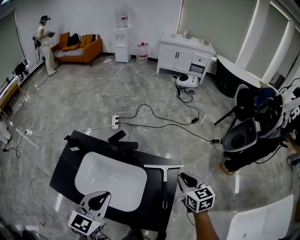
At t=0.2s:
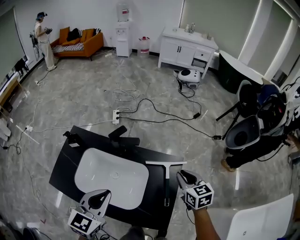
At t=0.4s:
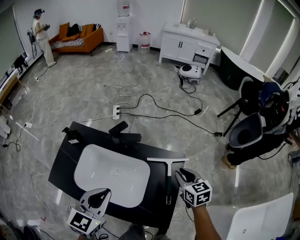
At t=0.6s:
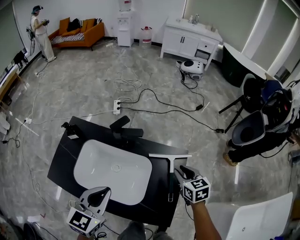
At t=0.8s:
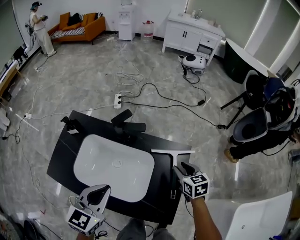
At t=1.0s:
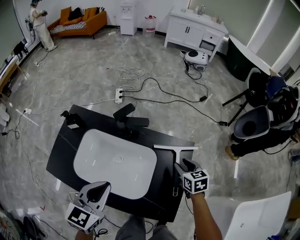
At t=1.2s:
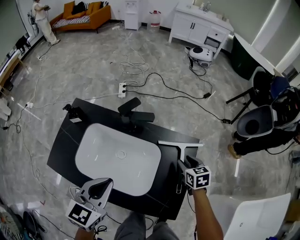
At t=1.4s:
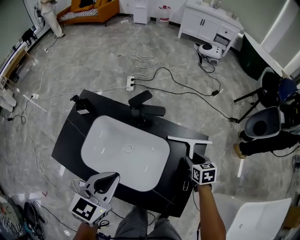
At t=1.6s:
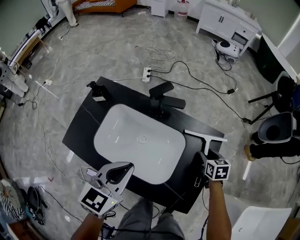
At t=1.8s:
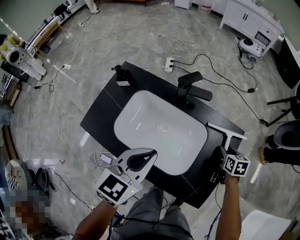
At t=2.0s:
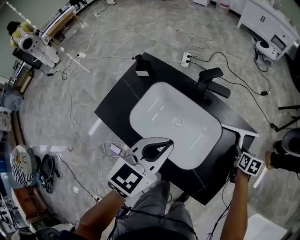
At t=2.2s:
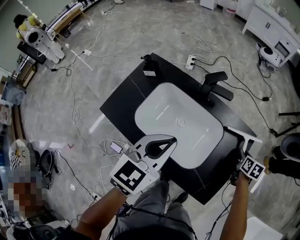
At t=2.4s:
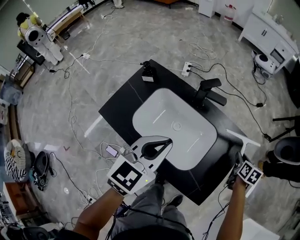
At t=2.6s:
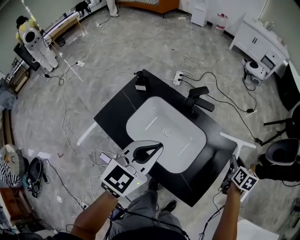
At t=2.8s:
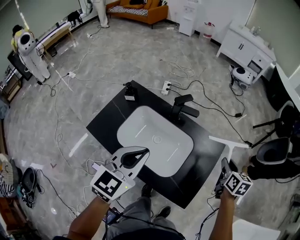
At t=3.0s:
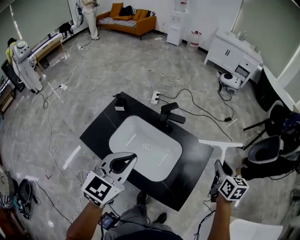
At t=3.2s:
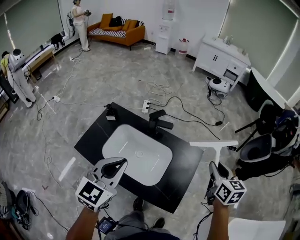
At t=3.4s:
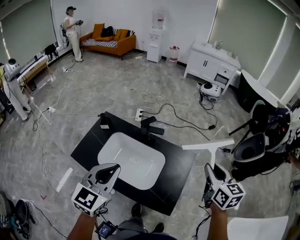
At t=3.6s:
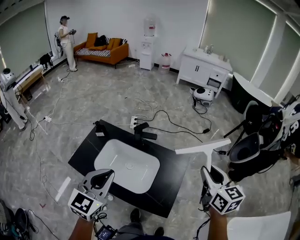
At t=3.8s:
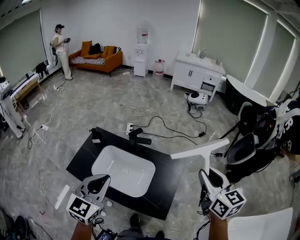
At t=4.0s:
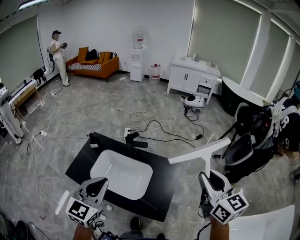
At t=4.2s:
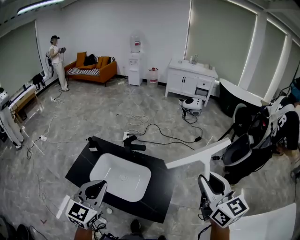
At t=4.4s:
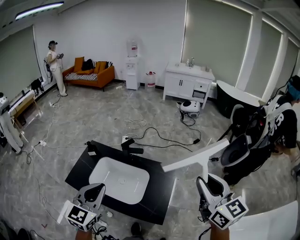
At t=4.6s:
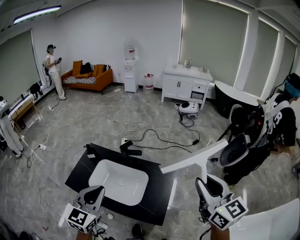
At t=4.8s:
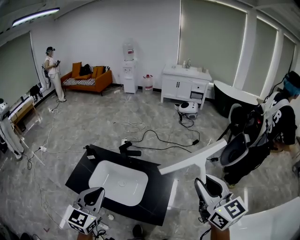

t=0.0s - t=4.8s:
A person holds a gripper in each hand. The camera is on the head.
t=0.0s - t=1.6s: The right gripper moves downward, about 20 cm, rotates roughly 20 degrees, and opens up. The left gripper is displaced downward and to the left by about 10 cm.
t=1.6s - t=3.2s: The right gripper travels upward by approximately 35 cm, changes its angle by roughly 30 degrees, and closes its fingers, while the left gripper shifts approximately 20 cm upward.
t=3.2s - t=4.8s: The left gripper shifts some 10 cm backward, upward and to the right, while the right gripper is displaced upward and backward by approximately 25 cm, and changes its angle by roughly 30 degrees.

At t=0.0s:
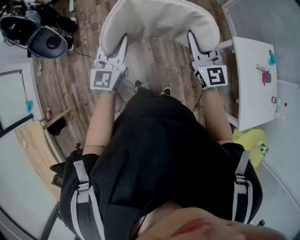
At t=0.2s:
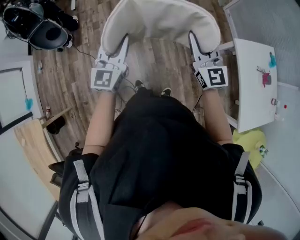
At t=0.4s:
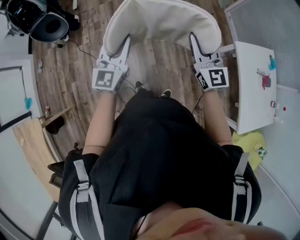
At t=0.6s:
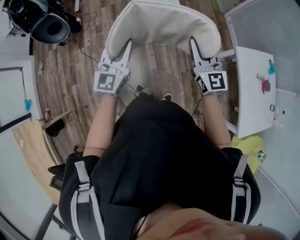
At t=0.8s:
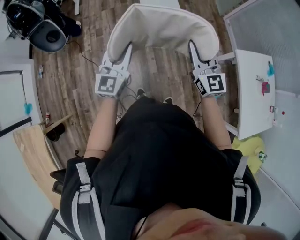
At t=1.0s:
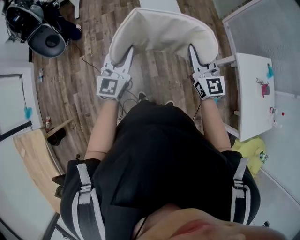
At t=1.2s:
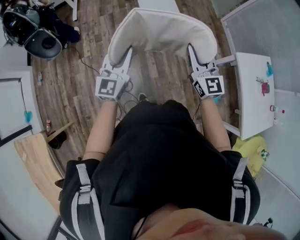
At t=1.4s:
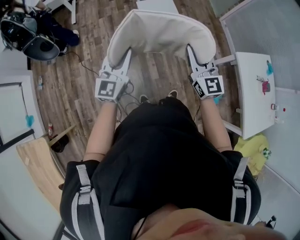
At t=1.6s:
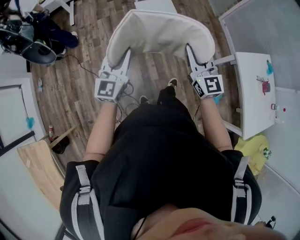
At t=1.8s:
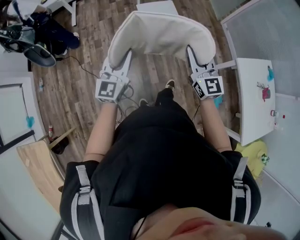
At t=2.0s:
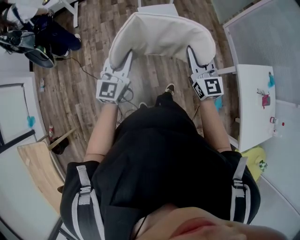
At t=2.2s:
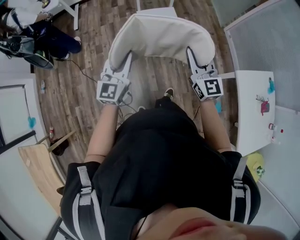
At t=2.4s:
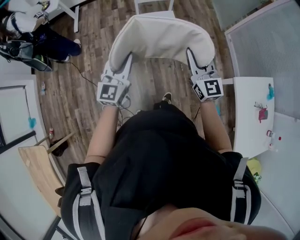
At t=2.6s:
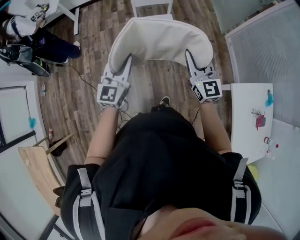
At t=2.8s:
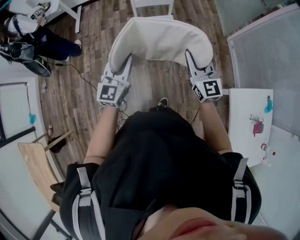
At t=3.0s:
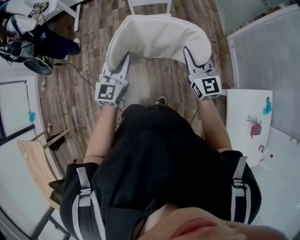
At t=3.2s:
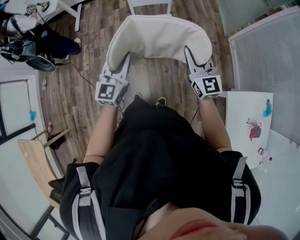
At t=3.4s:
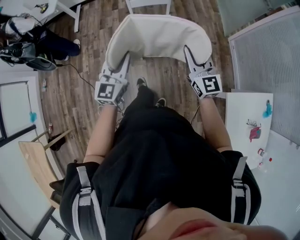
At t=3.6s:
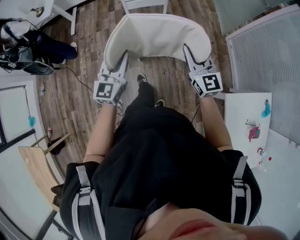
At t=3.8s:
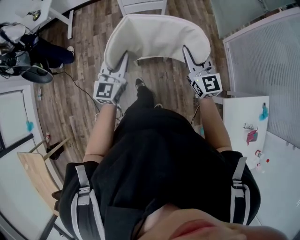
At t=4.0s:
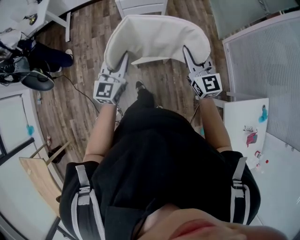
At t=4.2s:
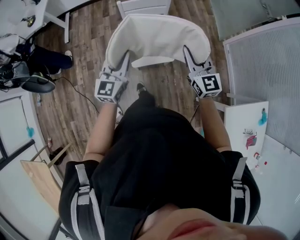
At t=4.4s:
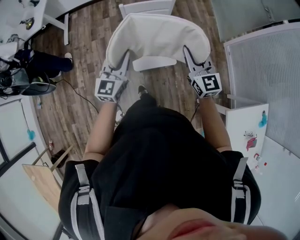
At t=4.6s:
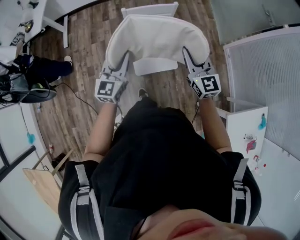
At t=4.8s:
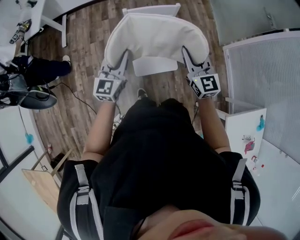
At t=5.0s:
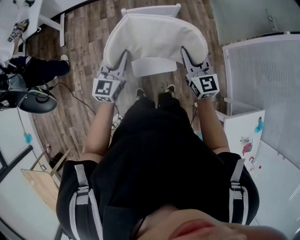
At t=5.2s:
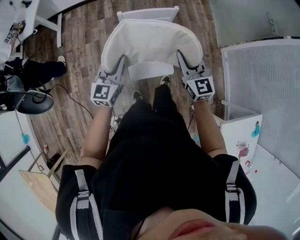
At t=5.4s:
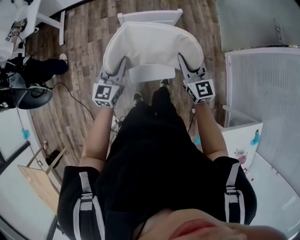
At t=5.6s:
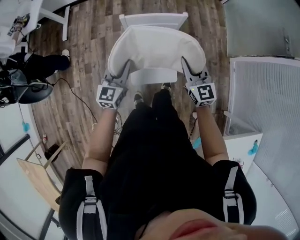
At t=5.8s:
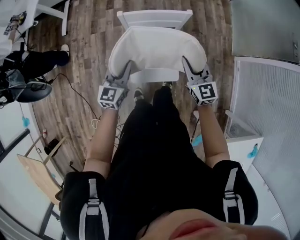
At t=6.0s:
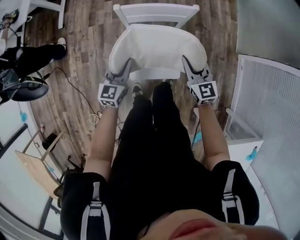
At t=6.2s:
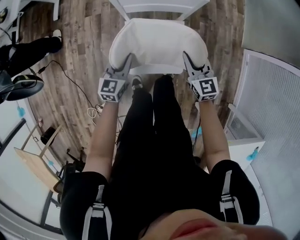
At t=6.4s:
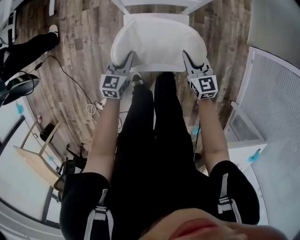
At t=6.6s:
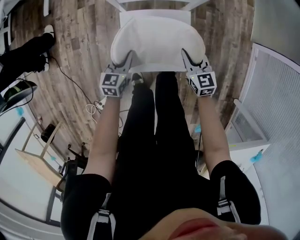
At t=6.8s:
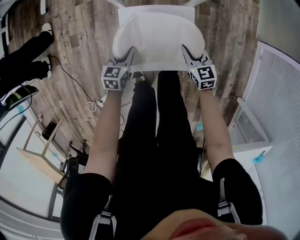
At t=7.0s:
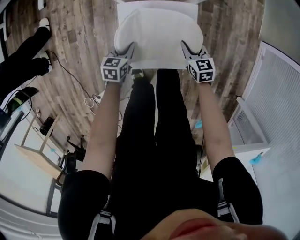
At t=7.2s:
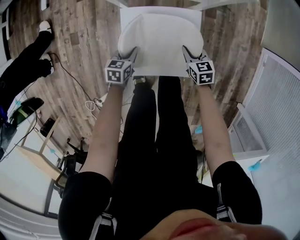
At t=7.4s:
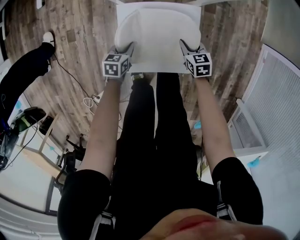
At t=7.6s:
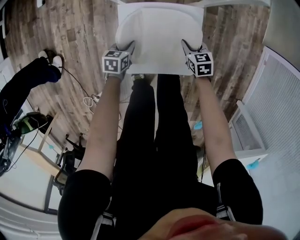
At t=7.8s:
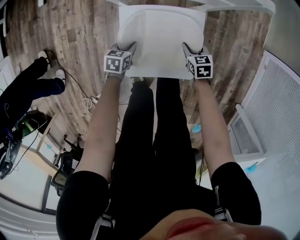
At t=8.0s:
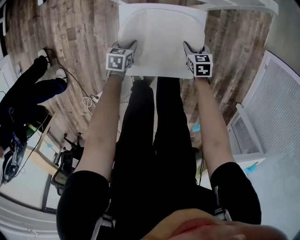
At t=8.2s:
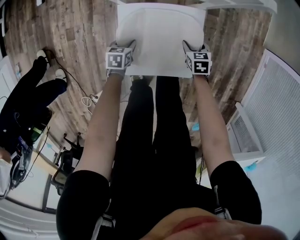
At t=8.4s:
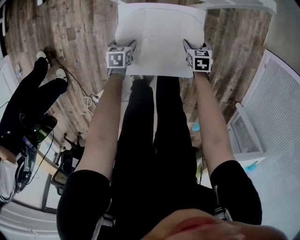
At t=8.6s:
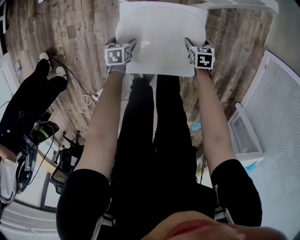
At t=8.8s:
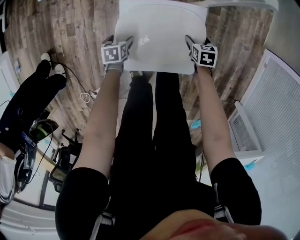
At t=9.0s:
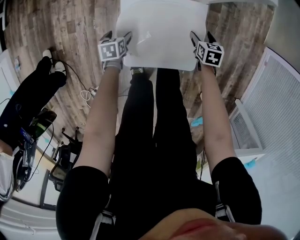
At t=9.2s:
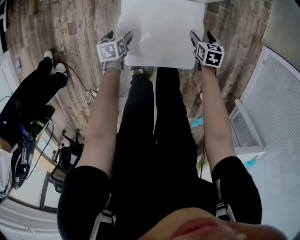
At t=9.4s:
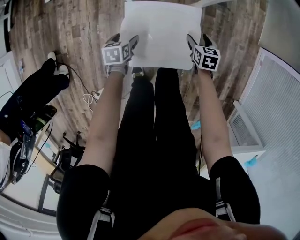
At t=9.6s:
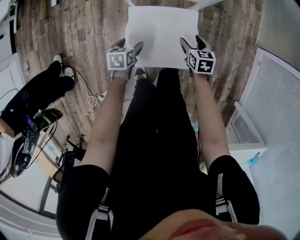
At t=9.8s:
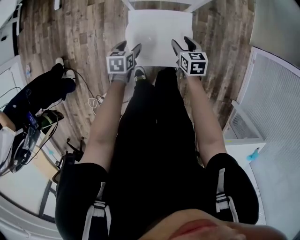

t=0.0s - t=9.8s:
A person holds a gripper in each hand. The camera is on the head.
t=0.0s - t=1.4s: Both grippers move to the left, approximately 10 cm.
t=1.4s - t=2.8s: The grippers both shift forward and to the right by approximately 30 cm.
t=2.8s - t=4.2s: Both grippers travel together forward, approximately 20 cm.
t=4.2s - t=5.6s: The grippers both shift forward and downward by roughly 25 cm.
t=5.6s - t=7.0s: Both grippers travel together downward, approximately 50 cm. The right gripper changes its angle by roughly 30 degrees. Meanwhile the left gripper angles its fingers downward, by about 30 degrees.
t=7.0s - t=8.4s: The two grippers go about 10 cm downward. The left gripper opens its fingers, while the right gripper changes its angle by some 20 degrees, and opens up.
t=8.4s - t=9.8s: The two grippers go approximately 25 cm upward.

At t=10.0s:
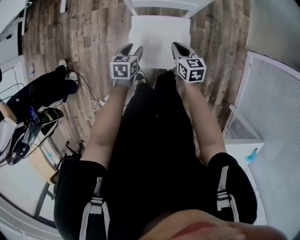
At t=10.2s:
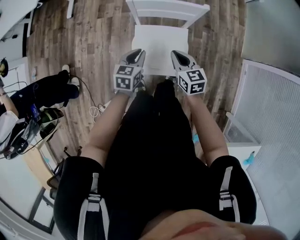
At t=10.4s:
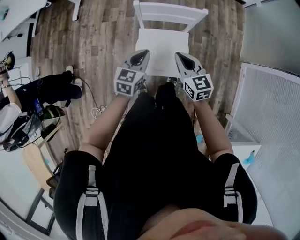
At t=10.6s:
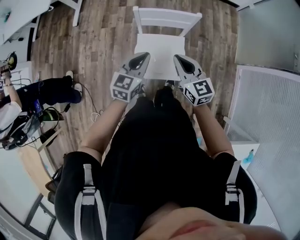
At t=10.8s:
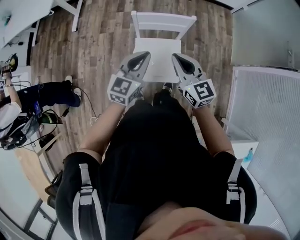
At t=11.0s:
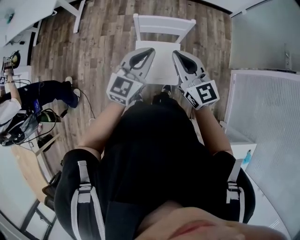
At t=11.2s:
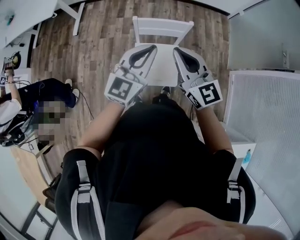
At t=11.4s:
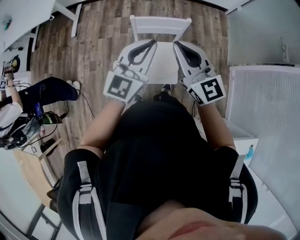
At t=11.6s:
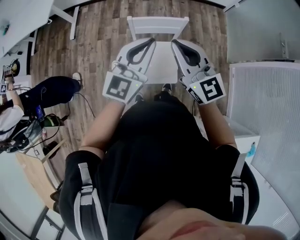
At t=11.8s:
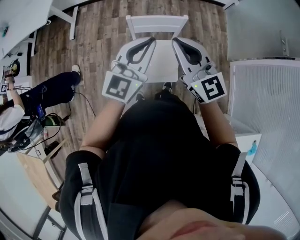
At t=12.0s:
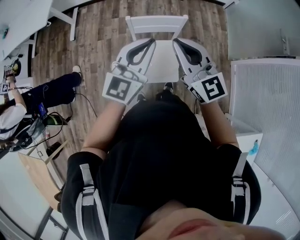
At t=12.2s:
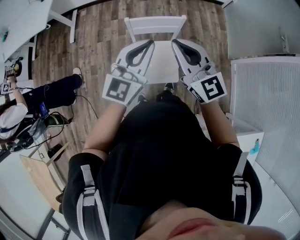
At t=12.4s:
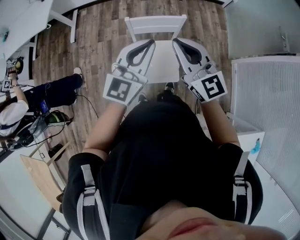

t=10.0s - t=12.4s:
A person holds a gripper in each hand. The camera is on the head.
t=10.0s - t=11.2s: Both grippers travel together upward, roughly 40 cm. The right gripper tilts its fingers roughly 40 degrees upward, while the left gripper tips its fingers upward by approximately 50 degrees, and closes up.
t=11.2s - t=12.4s: There are only small adjustments of the grippers.

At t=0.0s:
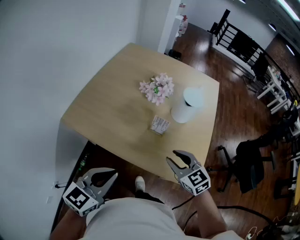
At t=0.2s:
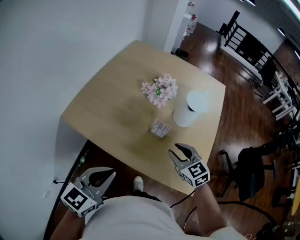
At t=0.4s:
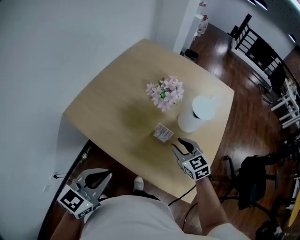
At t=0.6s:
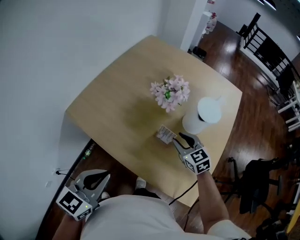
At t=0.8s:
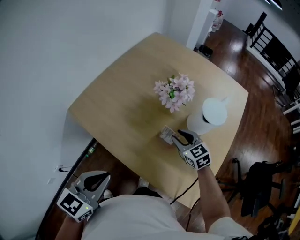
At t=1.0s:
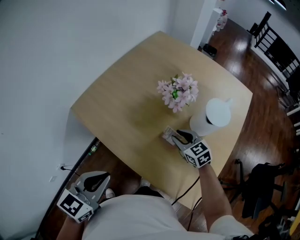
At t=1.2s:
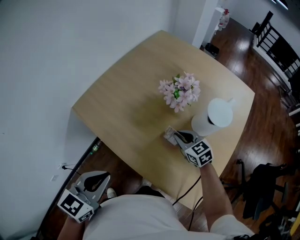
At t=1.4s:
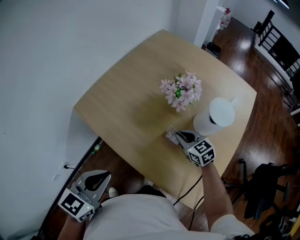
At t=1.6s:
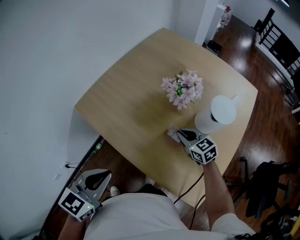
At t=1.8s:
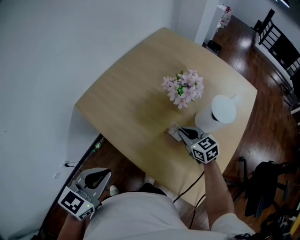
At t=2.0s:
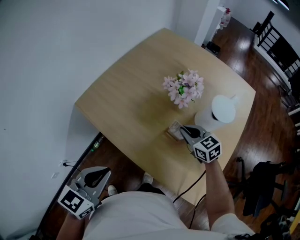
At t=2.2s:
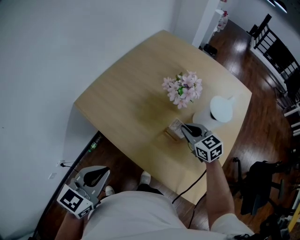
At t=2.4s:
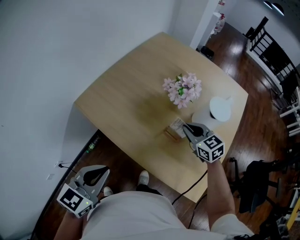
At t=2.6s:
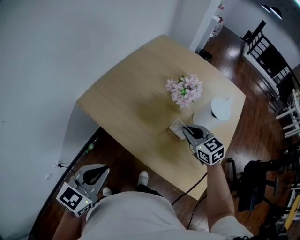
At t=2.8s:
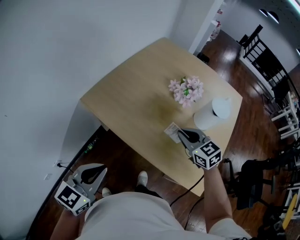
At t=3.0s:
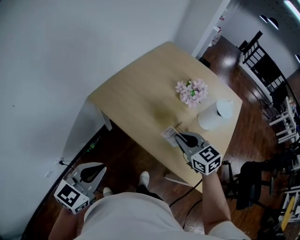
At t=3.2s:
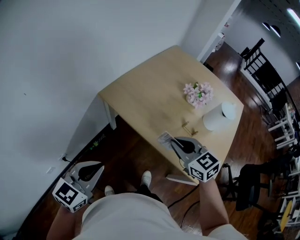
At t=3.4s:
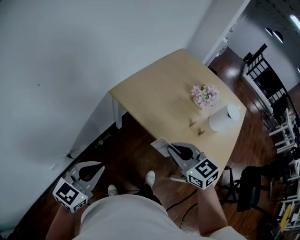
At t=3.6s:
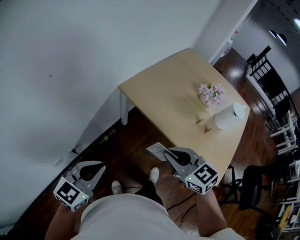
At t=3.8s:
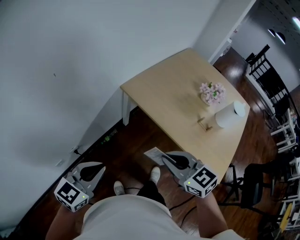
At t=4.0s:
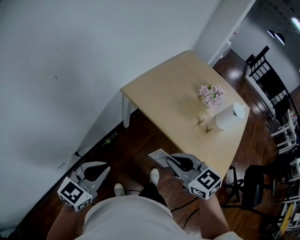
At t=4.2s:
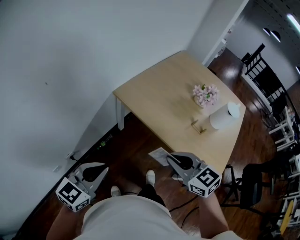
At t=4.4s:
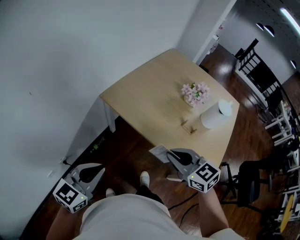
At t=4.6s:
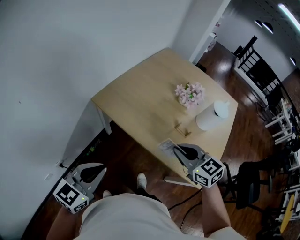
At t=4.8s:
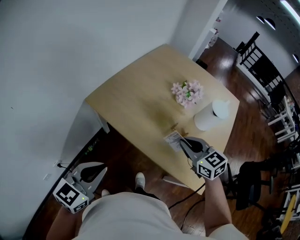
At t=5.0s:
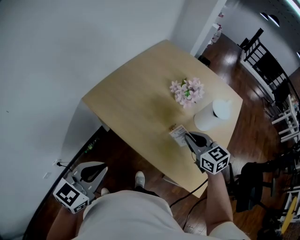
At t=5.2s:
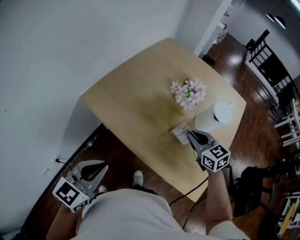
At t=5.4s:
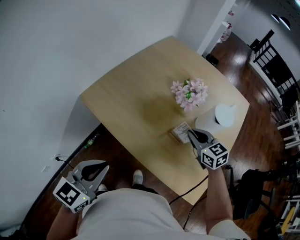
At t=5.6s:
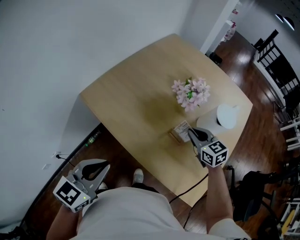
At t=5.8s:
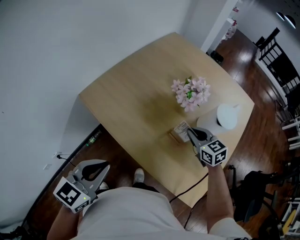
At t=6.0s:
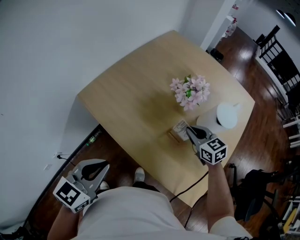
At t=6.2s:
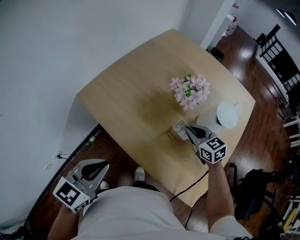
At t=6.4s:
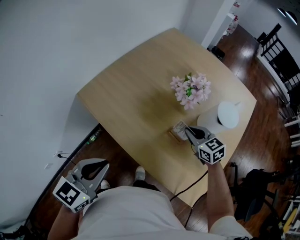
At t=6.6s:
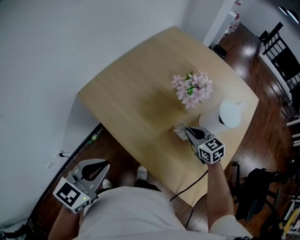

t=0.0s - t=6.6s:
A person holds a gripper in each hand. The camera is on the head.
t=0.0s - t=1.6s: The left gripper shifts about 5 cm forward, and swivels about 20 degrees; the right gripper is displaced forward and downward by roughly 25 cm, and closes its fingers.
t=1.6s - t=3.2s: The right gripper heads to the left, upward and backward, covering roughly 35 cm. The left gripper heads to the left and backward, covering roughly 25 cm.
t=3.2s - t=5.0s: The right gripper is displaced to the right by about 20 cm, while the left gripper travels to the right and forward by some 15 cm.
t=5.0s - t=6.6s: The left gripper shifts about 10 cm to the right and forward. The right gripper is displaced downward, forward and to the right by some 15 cm.
